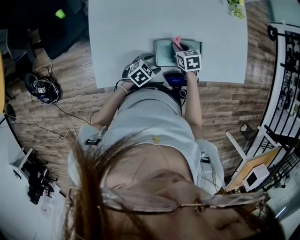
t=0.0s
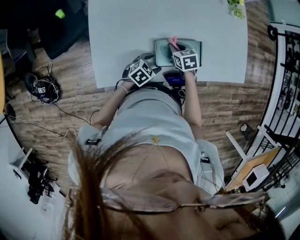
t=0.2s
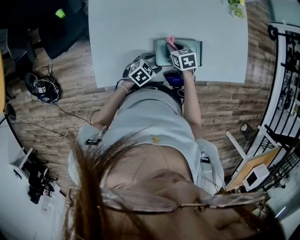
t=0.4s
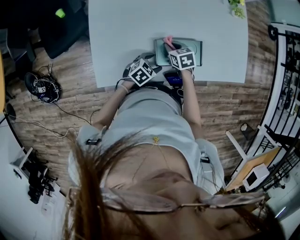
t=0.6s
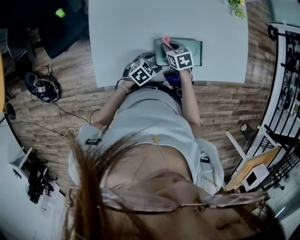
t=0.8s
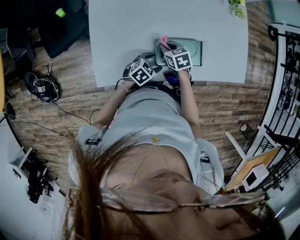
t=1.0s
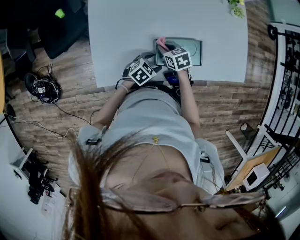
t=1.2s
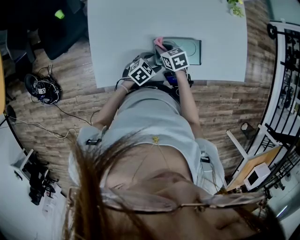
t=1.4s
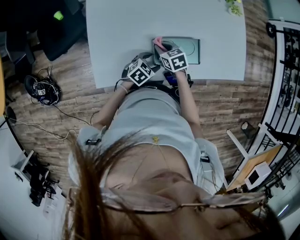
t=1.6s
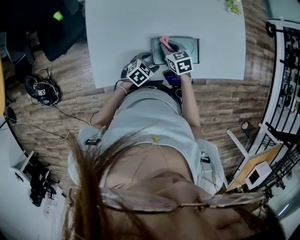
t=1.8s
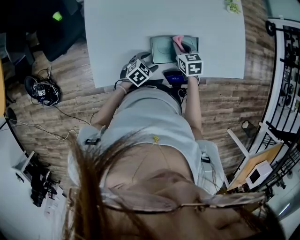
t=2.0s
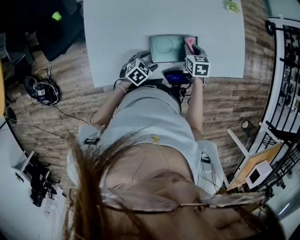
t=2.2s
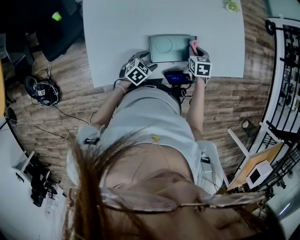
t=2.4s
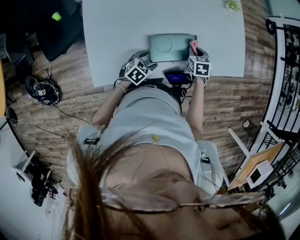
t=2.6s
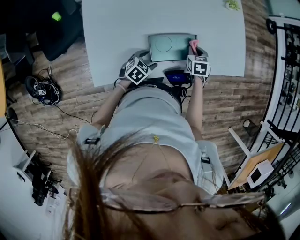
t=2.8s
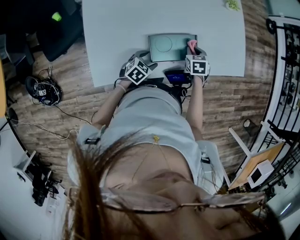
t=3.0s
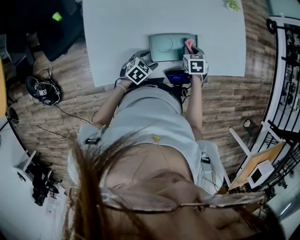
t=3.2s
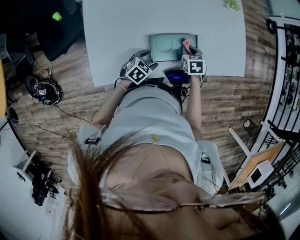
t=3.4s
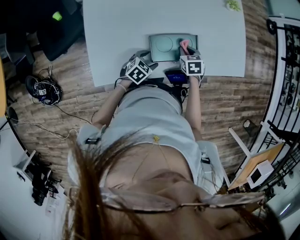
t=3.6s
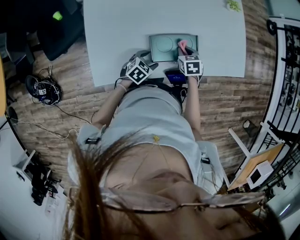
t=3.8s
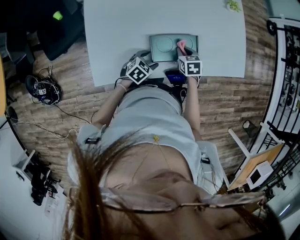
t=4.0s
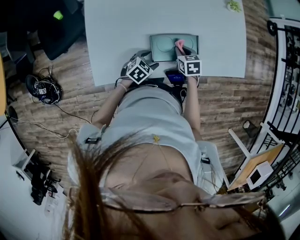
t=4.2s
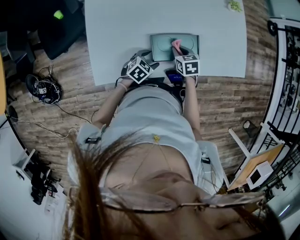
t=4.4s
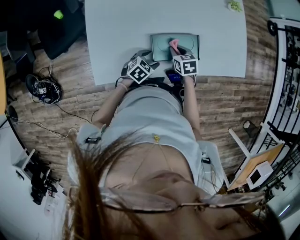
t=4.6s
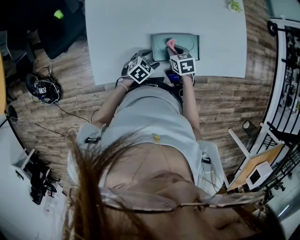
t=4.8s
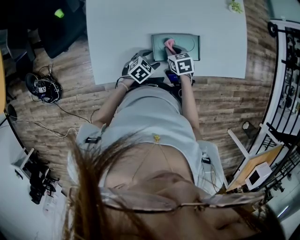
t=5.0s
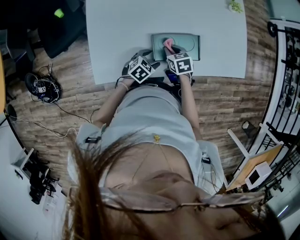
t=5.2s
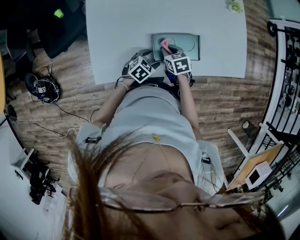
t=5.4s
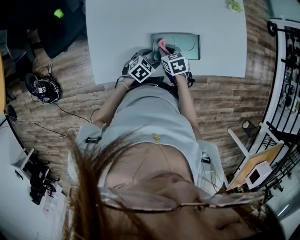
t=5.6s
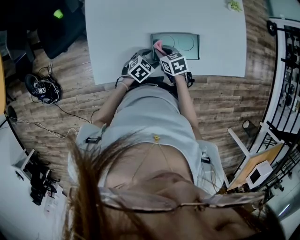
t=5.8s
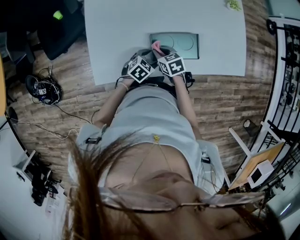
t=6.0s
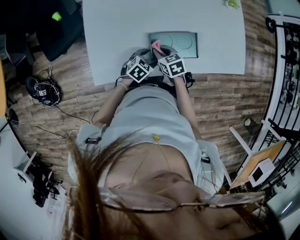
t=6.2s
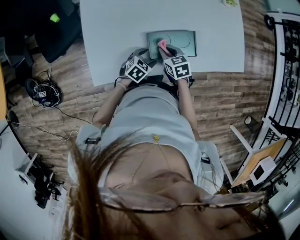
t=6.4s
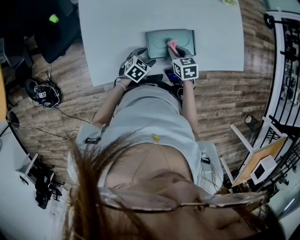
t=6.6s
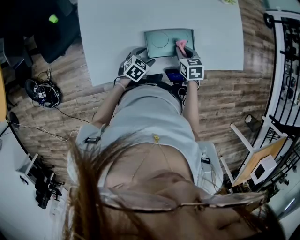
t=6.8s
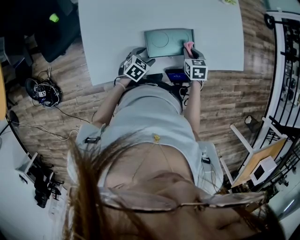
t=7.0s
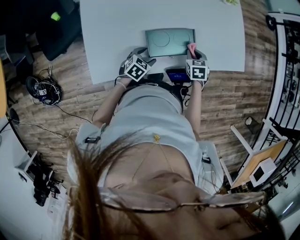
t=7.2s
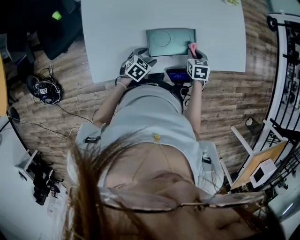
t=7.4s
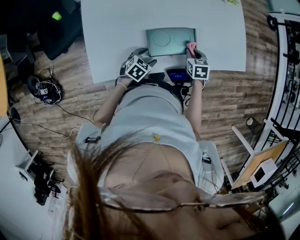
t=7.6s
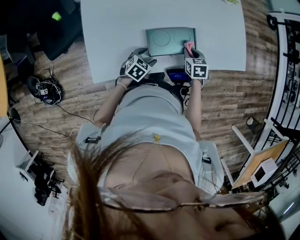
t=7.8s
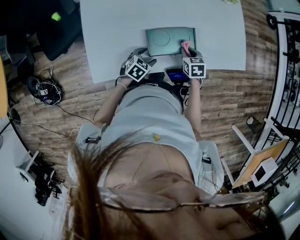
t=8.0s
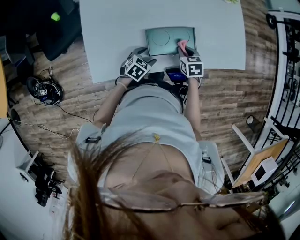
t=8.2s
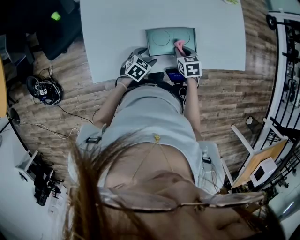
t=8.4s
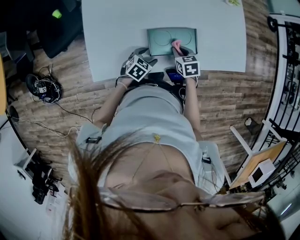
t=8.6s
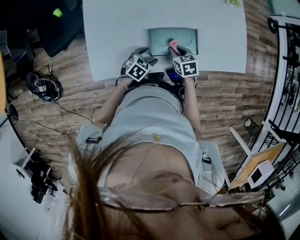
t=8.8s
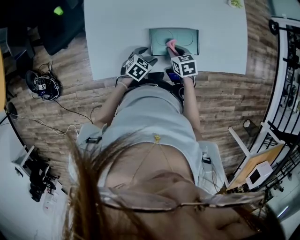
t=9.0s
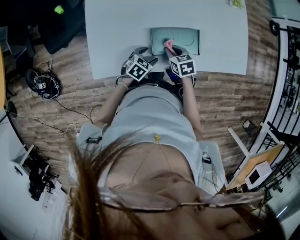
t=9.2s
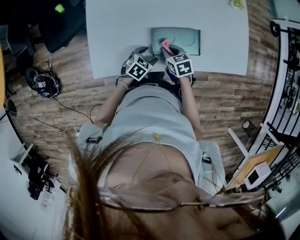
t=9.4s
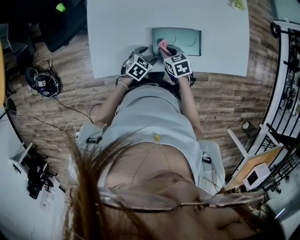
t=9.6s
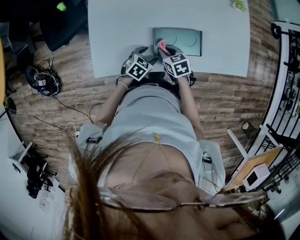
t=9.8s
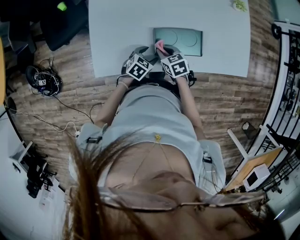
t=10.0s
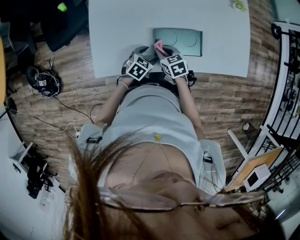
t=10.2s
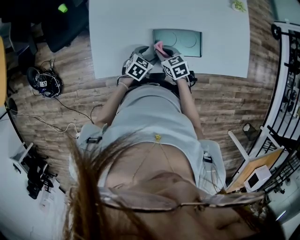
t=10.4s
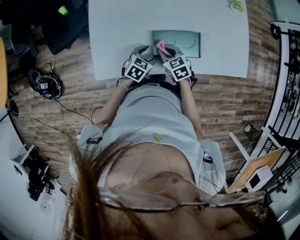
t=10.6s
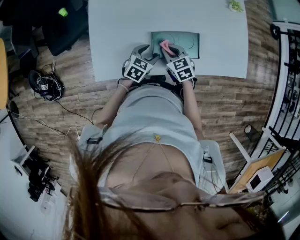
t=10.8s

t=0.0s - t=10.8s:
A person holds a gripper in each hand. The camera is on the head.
t=0.0s - t=1.6s: The right gripper travels to the left by some 10 cm.
t=1.6s - t=3.0s: The right gripper moves to the right, approximately 20 cm, and swivels approximately 30 degrees.
t=3.0s - t=4.6s: The right gripper goes approximately 10 cm to the left.
t=4.6s - t=6.2s: The right gripper goes roughly 5 cm to the left.
t=6.2s - t=7.8s: The right gripper travels to the right by roughly 15 cm, and turns by some 20 degrees.
t=7.8s - t=9.2s: The right gripper moves to the left, about 10 cm.
t=9.2s - t=10.8s: The left gripper shifts by some 5 cm.

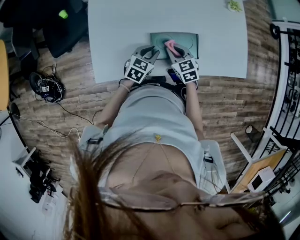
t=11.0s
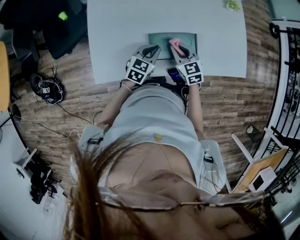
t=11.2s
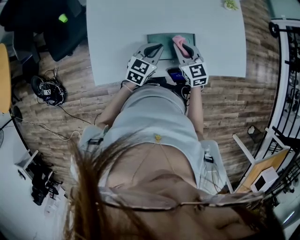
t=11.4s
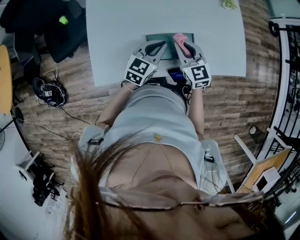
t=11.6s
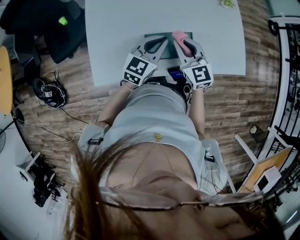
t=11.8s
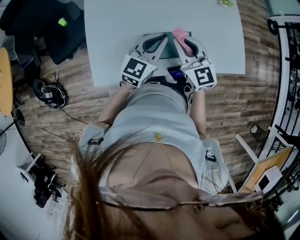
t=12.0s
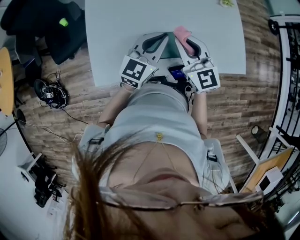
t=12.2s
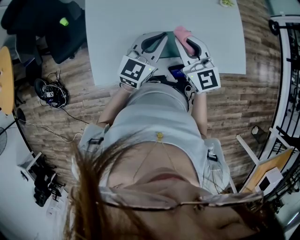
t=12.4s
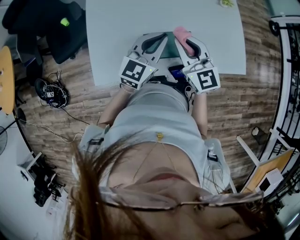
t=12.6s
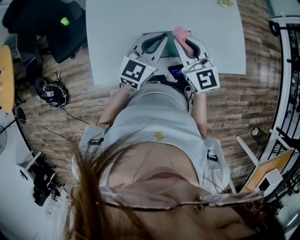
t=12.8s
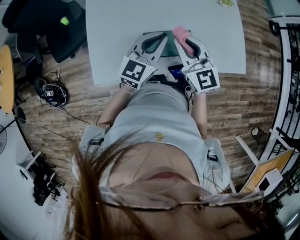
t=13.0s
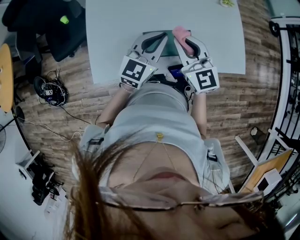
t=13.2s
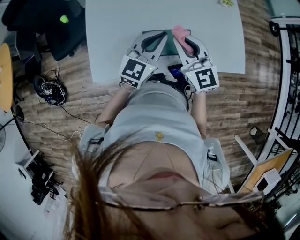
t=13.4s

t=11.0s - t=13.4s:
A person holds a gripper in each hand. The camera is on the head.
t=11.0s - t=12.2s: The grippers both shift upward by approximately 20 cm. The right gripper points its fingers approximately 30 degrees further upward. The left gripper turns by about 30 degrees.
t=12.2s - t=13.4s: Both grippers stay put.

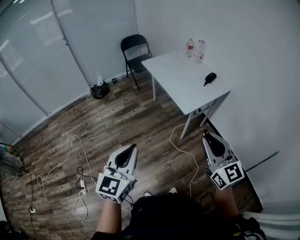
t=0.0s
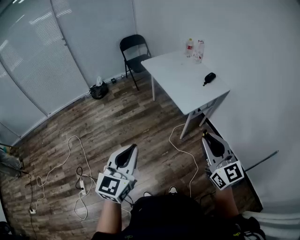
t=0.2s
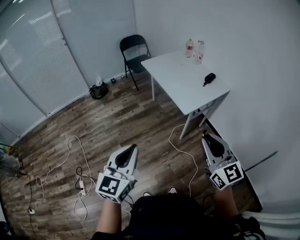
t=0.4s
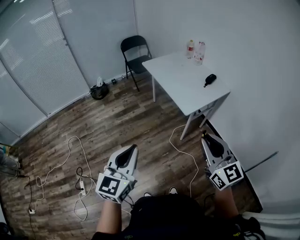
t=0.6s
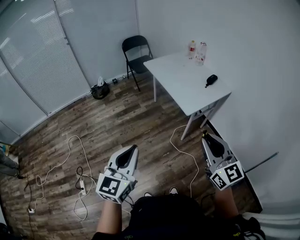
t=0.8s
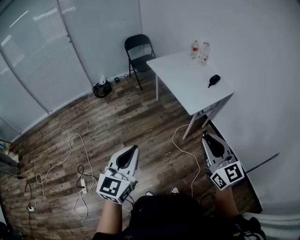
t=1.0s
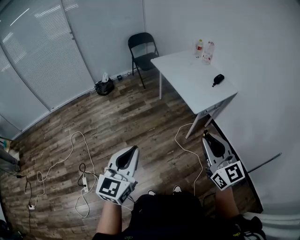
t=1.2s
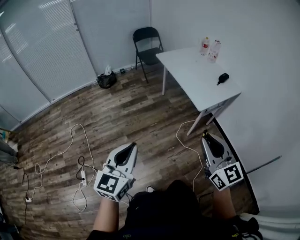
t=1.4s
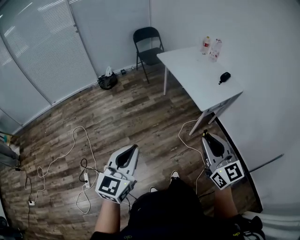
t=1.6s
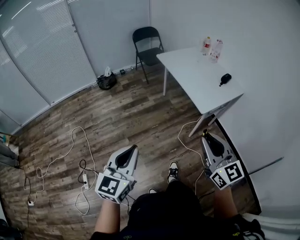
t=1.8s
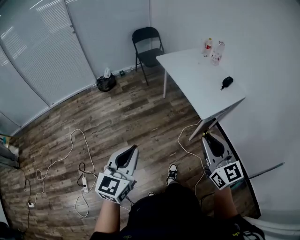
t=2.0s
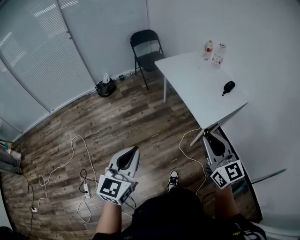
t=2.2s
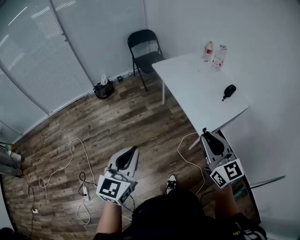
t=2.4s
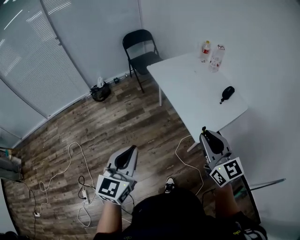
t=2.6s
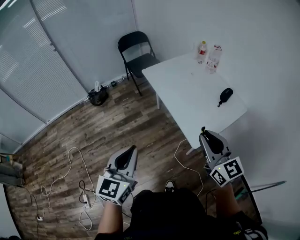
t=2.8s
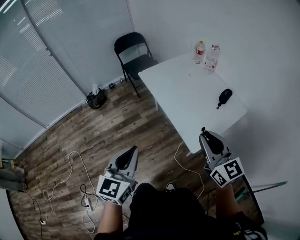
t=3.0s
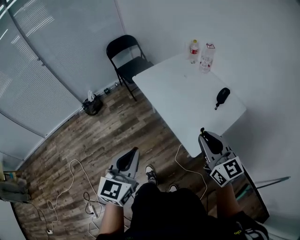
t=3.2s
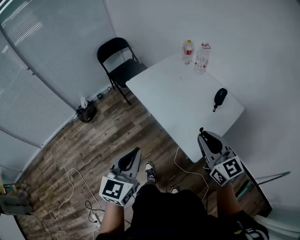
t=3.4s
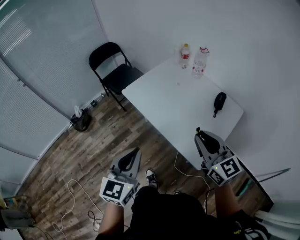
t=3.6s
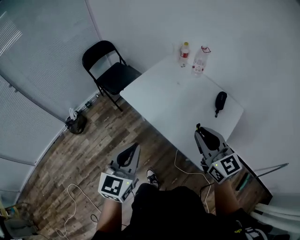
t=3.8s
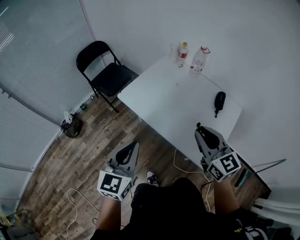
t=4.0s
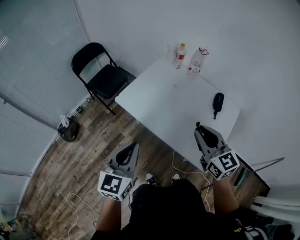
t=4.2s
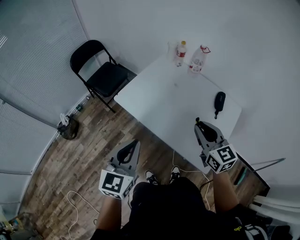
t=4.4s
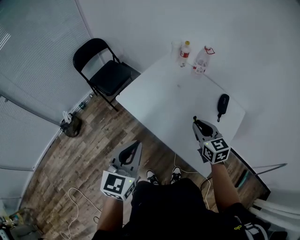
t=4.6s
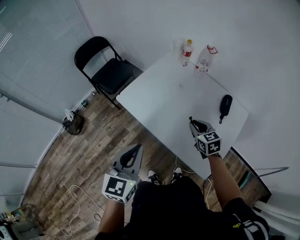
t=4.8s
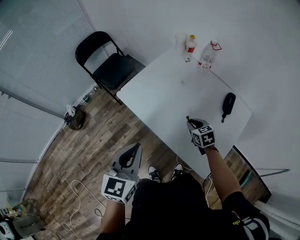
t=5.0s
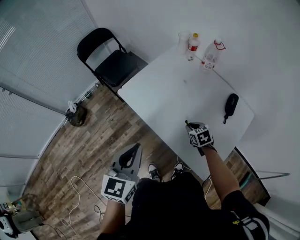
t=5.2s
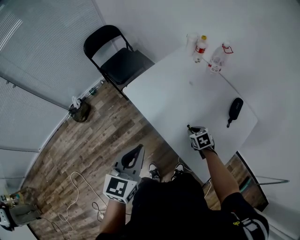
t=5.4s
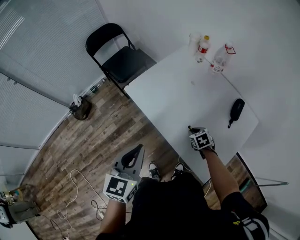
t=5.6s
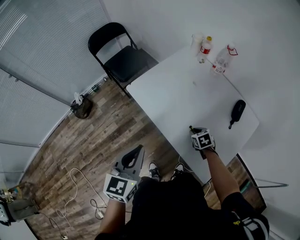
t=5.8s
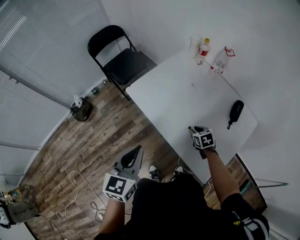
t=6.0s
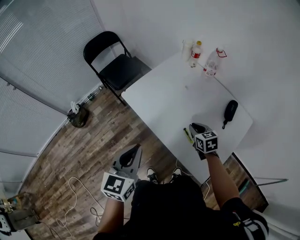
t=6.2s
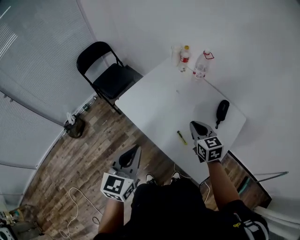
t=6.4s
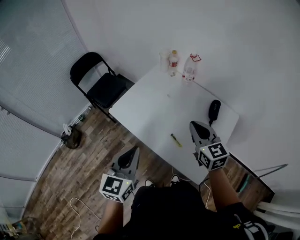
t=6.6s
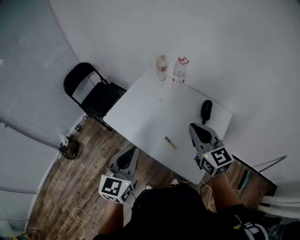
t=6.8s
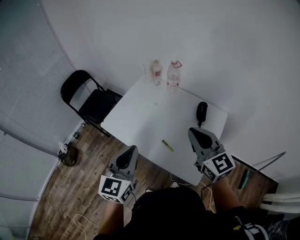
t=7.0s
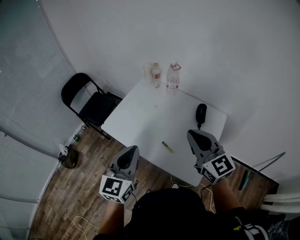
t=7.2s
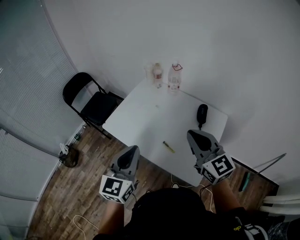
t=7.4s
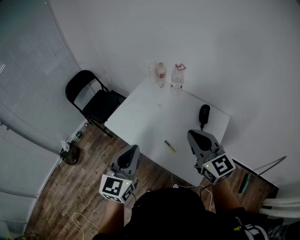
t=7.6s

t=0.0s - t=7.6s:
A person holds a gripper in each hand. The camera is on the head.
t=0.0s - t=1.6s: Both grippers move to the left, roughly 10 cm.
t=1.6s - t=3.0s: Both grippers are carried forward and to the right, roughly 40 cm.
t=3.0s - t=4.6s: The left gripper goes some 35 cm forward, while the right gripper travels forward and downward by approximately 35 cm, and rotates about 30 degrees.
t=4.6s - t=6.0s: The right gripper heads downward, covering approximately 25 cm, and points its fingers approximately 30 degrees further downward.
t=6.0s - t=7.6s: The left gripper goes roughly 15 cm upward and to the right, and swivels about 20 degrees; the right gripper shifts about 40 cm upward, tips its fingers upward by some 50 degrees, and closes its fingers.

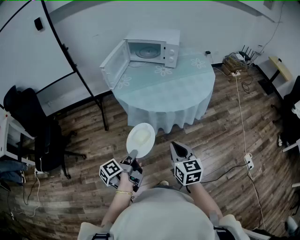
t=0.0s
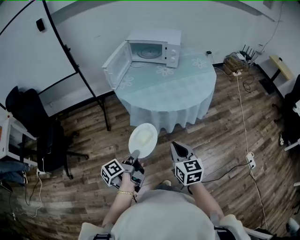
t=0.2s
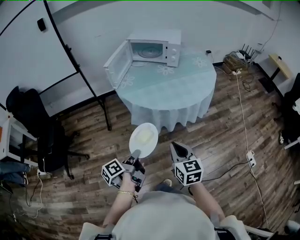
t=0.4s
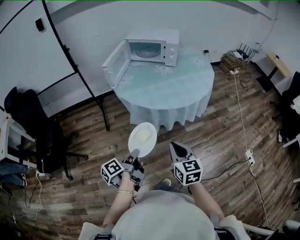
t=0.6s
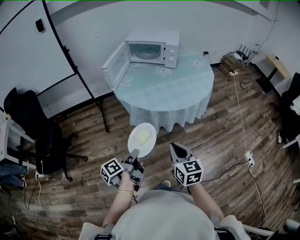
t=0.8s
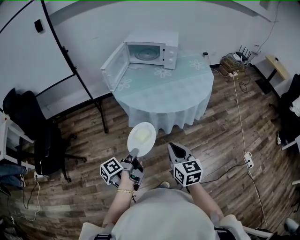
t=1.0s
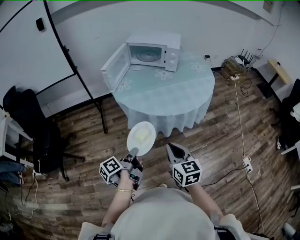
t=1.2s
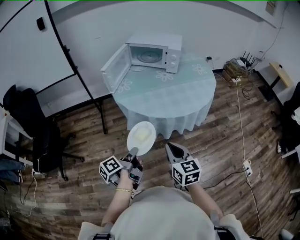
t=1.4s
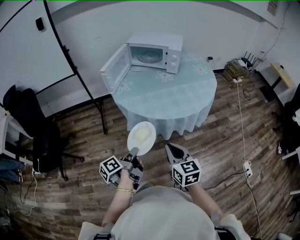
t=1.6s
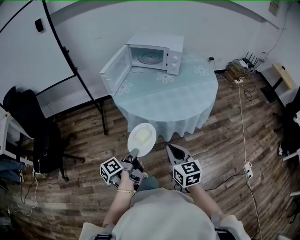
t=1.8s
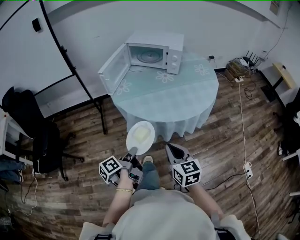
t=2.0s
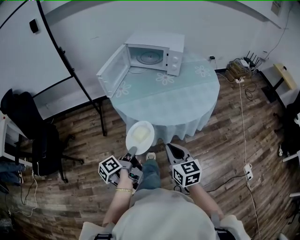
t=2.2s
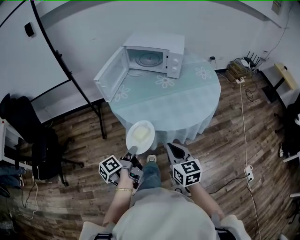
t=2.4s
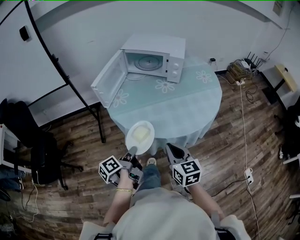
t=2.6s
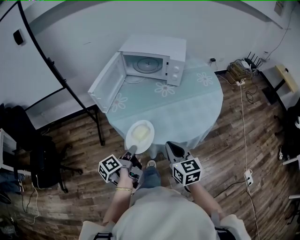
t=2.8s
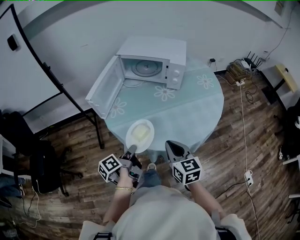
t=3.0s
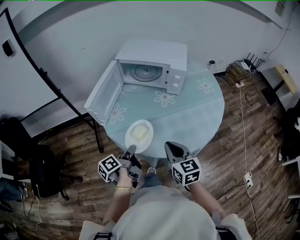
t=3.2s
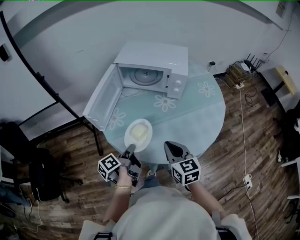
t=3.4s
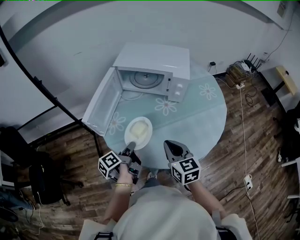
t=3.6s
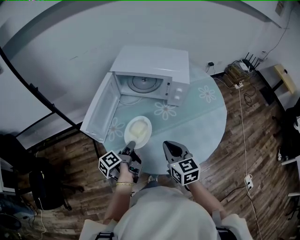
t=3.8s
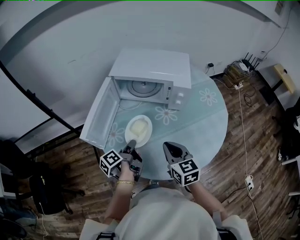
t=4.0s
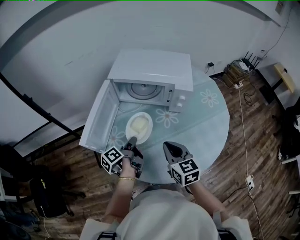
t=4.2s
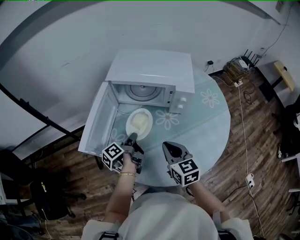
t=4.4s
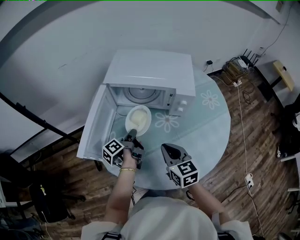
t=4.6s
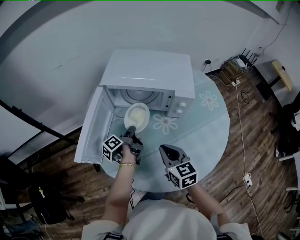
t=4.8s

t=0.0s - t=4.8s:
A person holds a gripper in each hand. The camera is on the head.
t=1.6s - t=3.2s: The right gripper ends up roughly 30 cm from where it was.
t=3.2s - t=4.8s: The right gripper shifts by about 20 cm.
